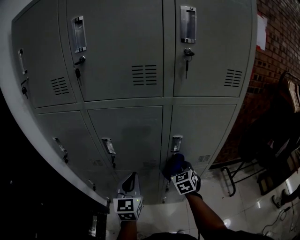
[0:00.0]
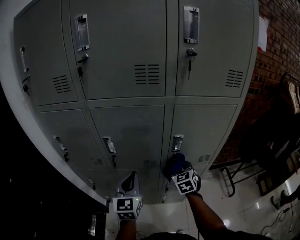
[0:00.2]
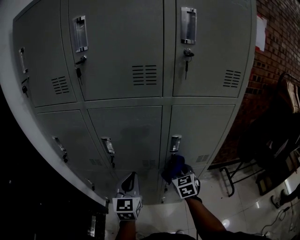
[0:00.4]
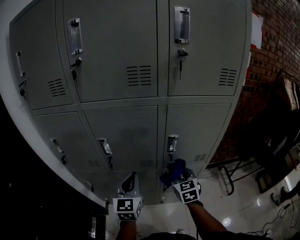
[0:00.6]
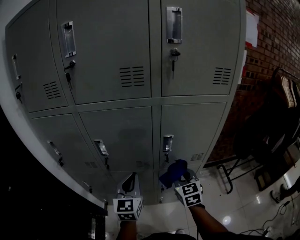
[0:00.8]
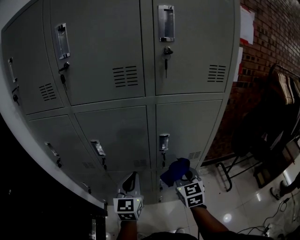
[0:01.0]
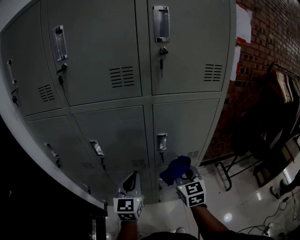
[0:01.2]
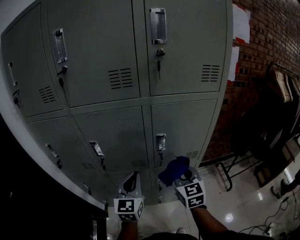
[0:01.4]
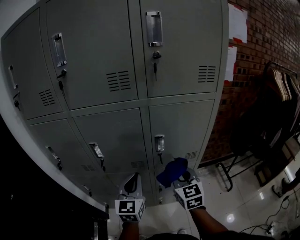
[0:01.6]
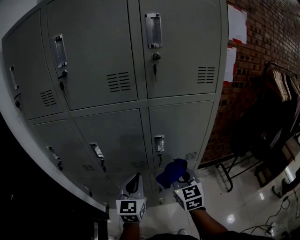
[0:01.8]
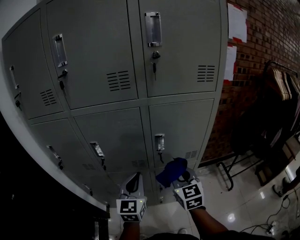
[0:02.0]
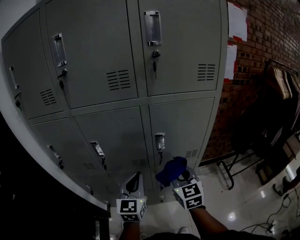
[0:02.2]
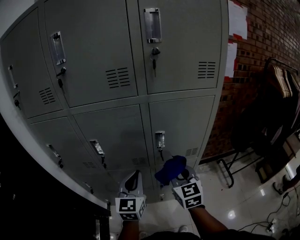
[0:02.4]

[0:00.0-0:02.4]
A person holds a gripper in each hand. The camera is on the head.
0:00.0 to 0:01.2: The left gripper shifts some 5 cm to the right. Meanwhile the right gripper moves backward and upward, approximately 10 cm.
0:01.2 to 0:02.4: There are only small adjustments of the grippers.

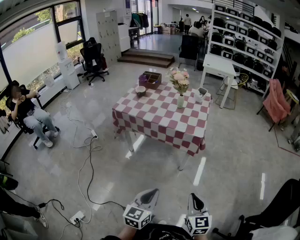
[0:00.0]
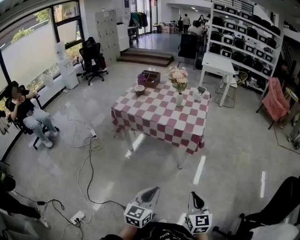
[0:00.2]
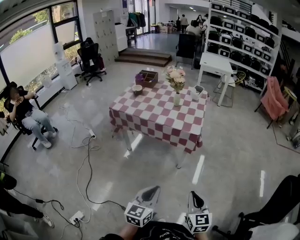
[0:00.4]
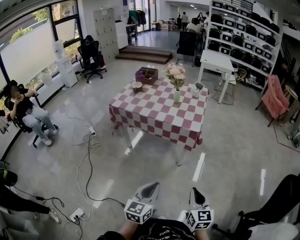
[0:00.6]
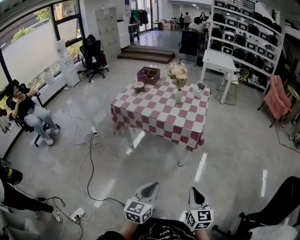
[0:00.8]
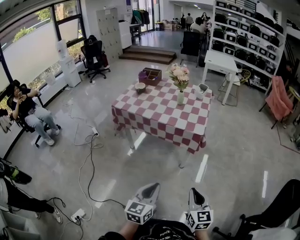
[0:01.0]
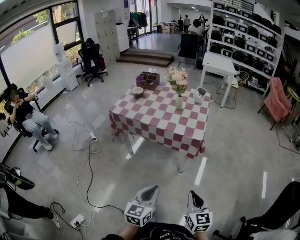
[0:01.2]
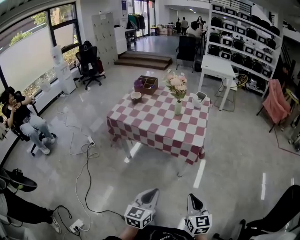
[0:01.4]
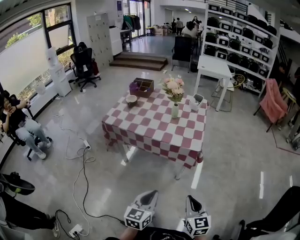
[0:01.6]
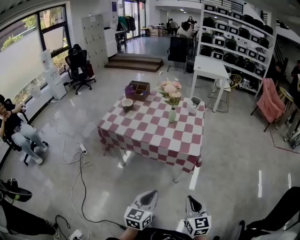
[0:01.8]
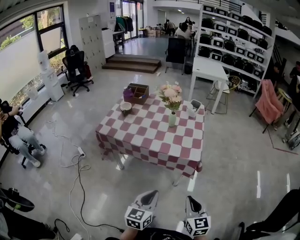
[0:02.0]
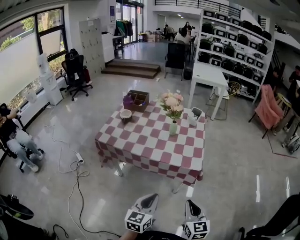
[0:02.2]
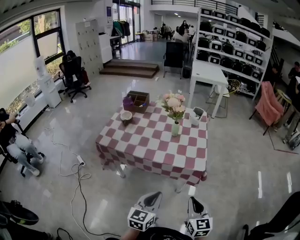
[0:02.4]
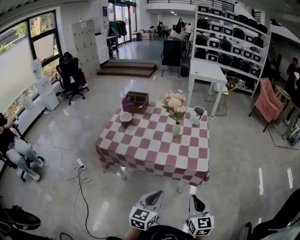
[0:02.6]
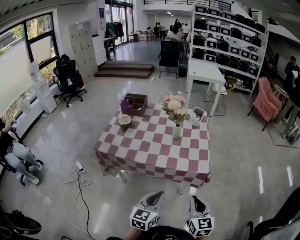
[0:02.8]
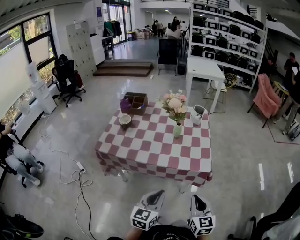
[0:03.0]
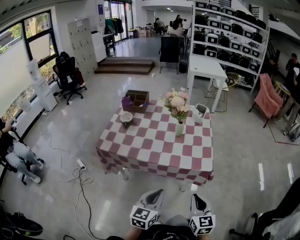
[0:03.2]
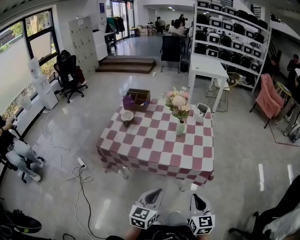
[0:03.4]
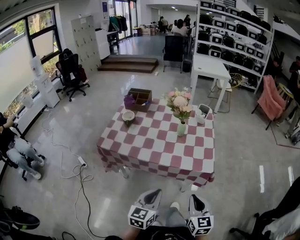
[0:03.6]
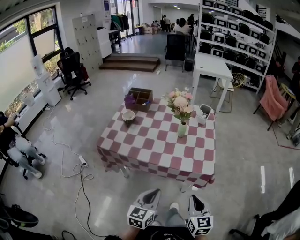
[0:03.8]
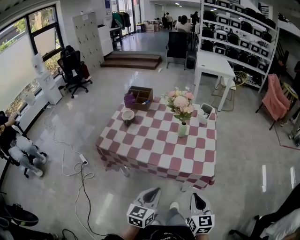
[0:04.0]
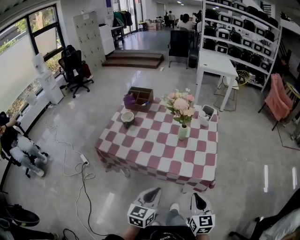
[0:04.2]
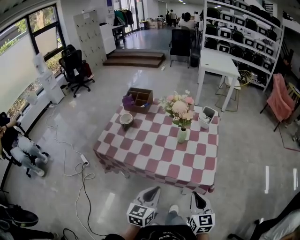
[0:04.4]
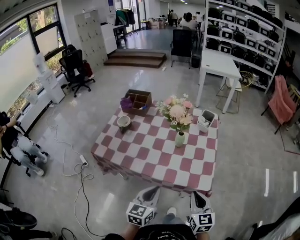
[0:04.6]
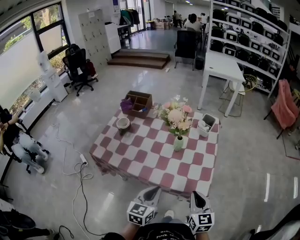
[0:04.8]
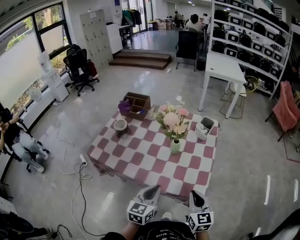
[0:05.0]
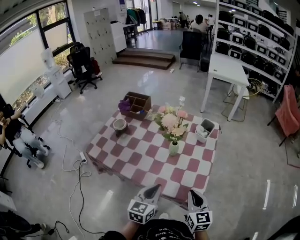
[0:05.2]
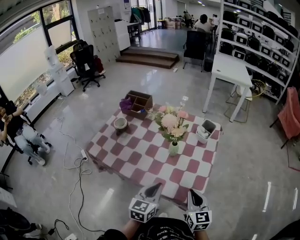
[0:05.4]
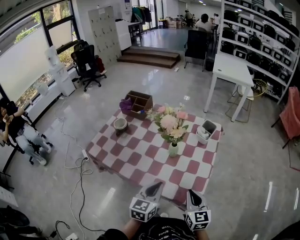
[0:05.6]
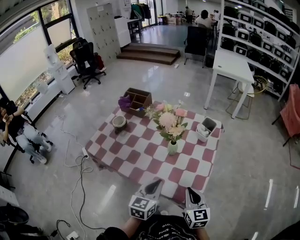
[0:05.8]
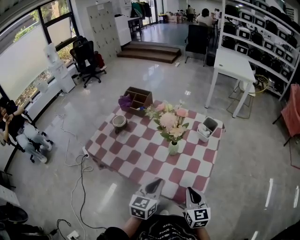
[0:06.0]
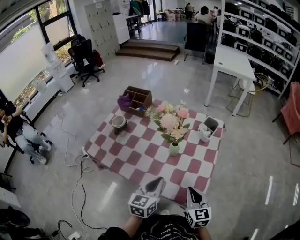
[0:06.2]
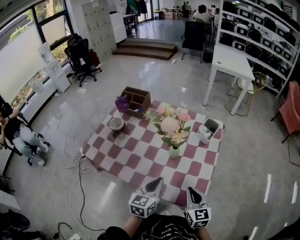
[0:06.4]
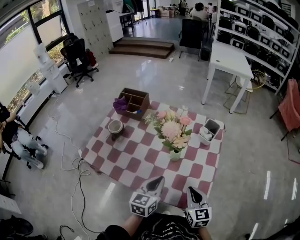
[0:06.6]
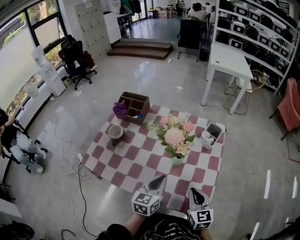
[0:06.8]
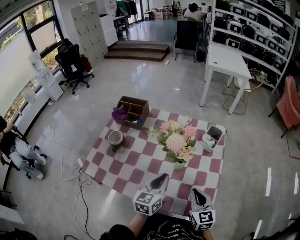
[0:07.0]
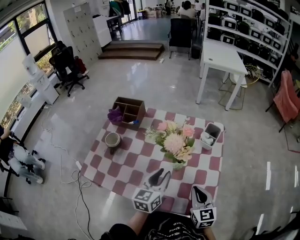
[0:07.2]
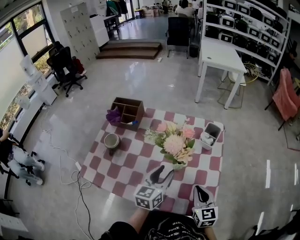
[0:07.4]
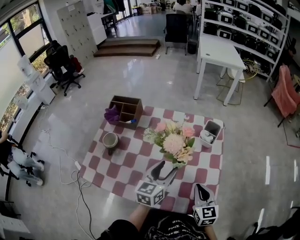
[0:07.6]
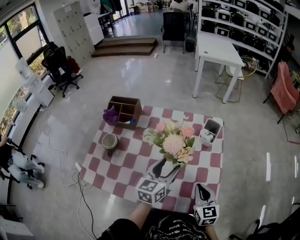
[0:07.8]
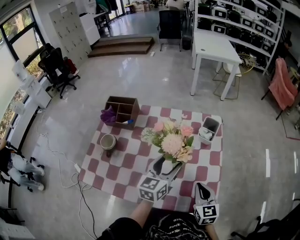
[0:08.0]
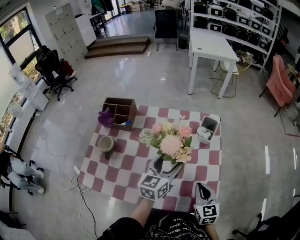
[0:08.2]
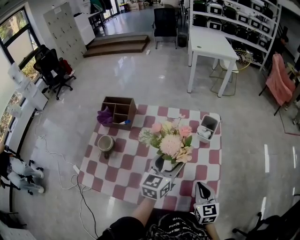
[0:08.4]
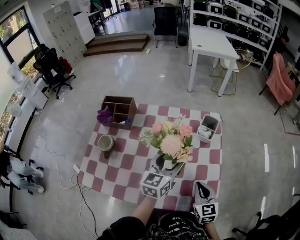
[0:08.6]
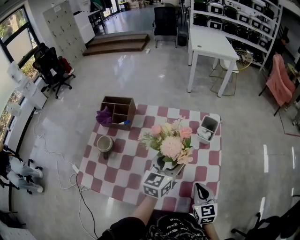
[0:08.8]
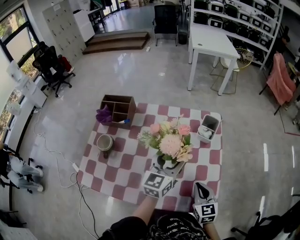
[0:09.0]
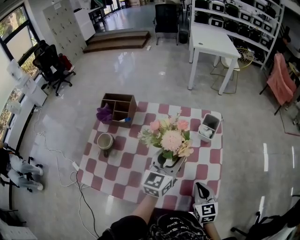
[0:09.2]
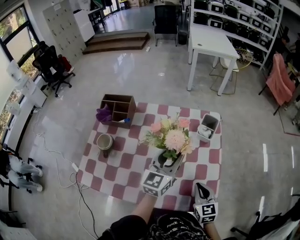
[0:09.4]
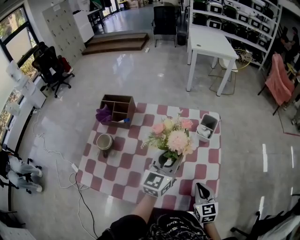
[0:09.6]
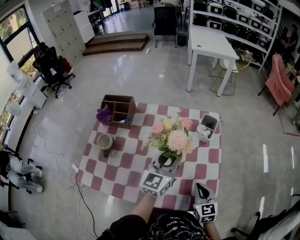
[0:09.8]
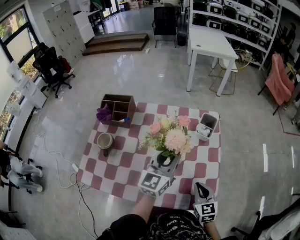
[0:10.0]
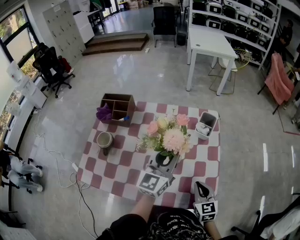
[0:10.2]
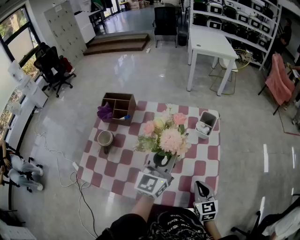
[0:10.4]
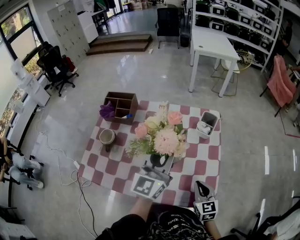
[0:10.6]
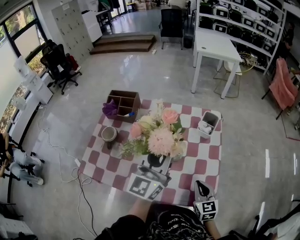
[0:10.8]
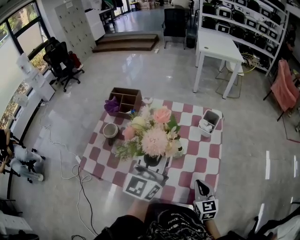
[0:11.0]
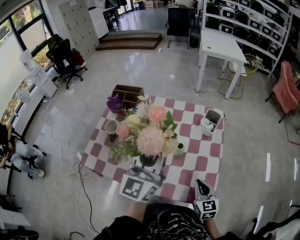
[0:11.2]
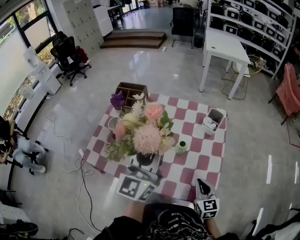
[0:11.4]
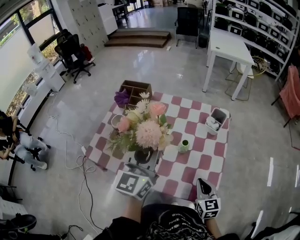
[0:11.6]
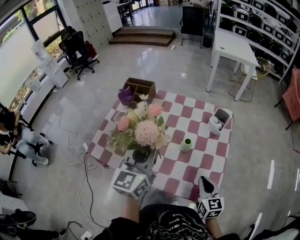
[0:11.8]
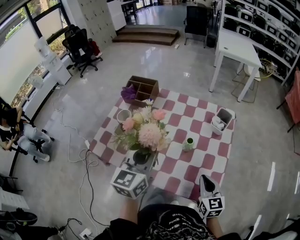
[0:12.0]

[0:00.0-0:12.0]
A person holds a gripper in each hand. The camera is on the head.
0:00.0 to 0:01.6: The grippers both shift forward by roughly 10 cm.
0:01.6 to 0:03.0: The two grippers go some 20 cm forward and to the left.
0:03.0 to 0:04.4: The two grippers go roughly 10 cm forward.
0:04.4 to 0:06.0: The left gripper travels forward and to the right by roughly 15 cm; the right gripper shifts roughly 15 cm forward.
0:06.0 to 0:07.6: The right gripper travels forward by roughly 10 cm; the left gripper travels forward by some 15 cm, and opens up.
0:07.6 to 0:09.0: The left gripper moves forward, approximately 5 cm.
0:09.0 to 0:10.4: The left gripper goes some 5 cm upward, and closes its fingers.
0:10.4 to 0:12.0: The left gripper moves to the left and backward, some 15 cm, and rotates roughly 20 degrees.

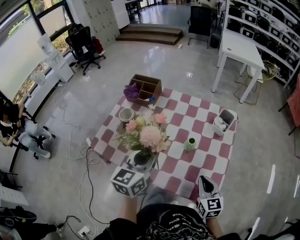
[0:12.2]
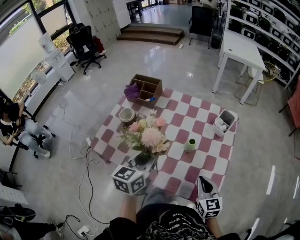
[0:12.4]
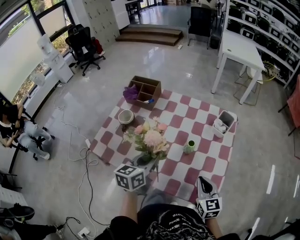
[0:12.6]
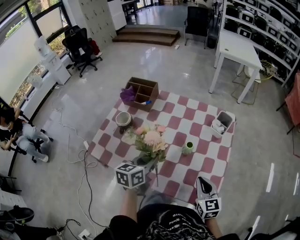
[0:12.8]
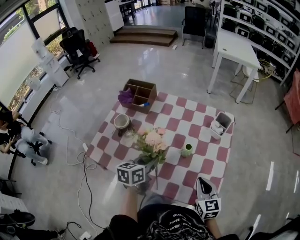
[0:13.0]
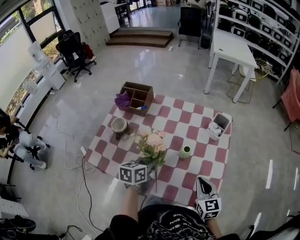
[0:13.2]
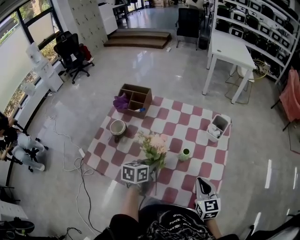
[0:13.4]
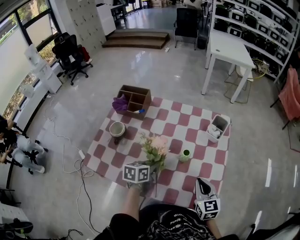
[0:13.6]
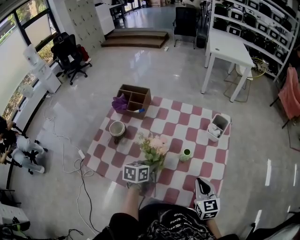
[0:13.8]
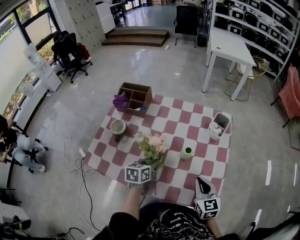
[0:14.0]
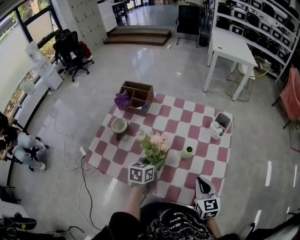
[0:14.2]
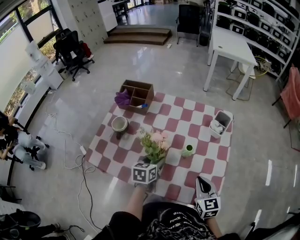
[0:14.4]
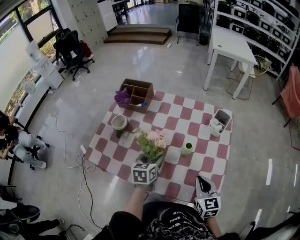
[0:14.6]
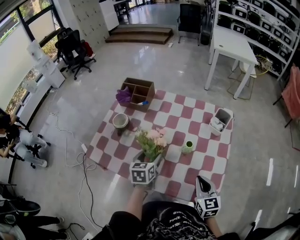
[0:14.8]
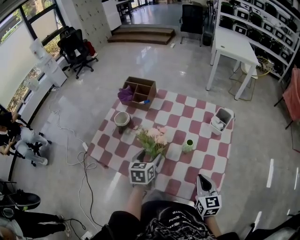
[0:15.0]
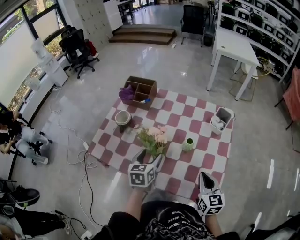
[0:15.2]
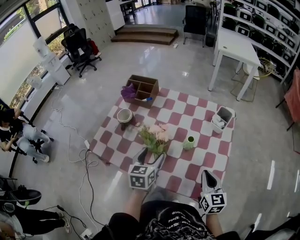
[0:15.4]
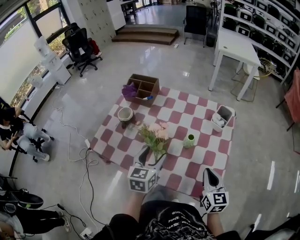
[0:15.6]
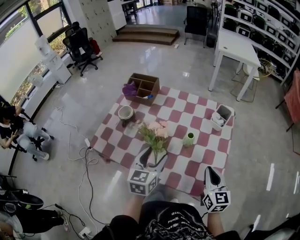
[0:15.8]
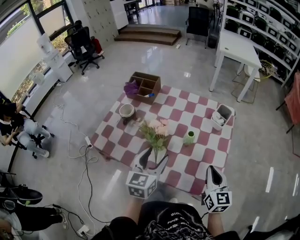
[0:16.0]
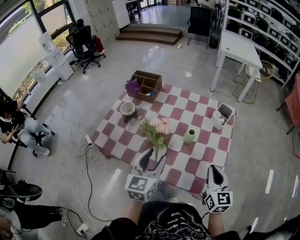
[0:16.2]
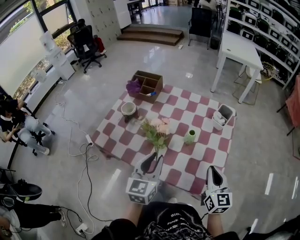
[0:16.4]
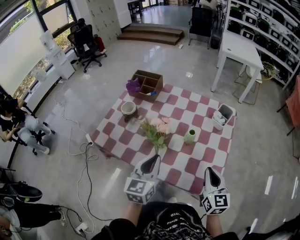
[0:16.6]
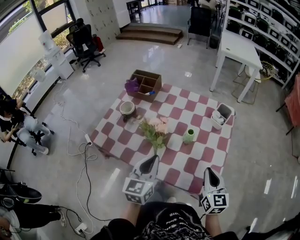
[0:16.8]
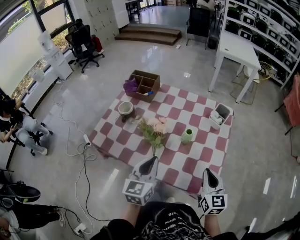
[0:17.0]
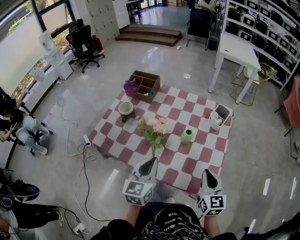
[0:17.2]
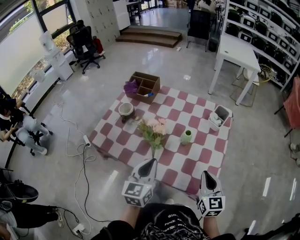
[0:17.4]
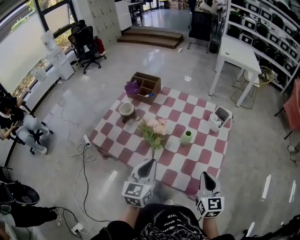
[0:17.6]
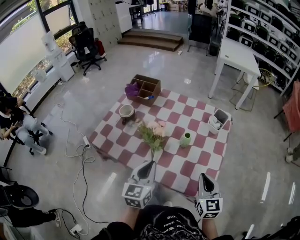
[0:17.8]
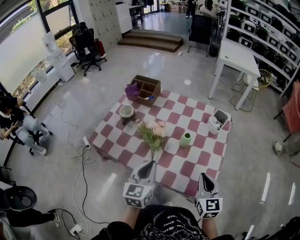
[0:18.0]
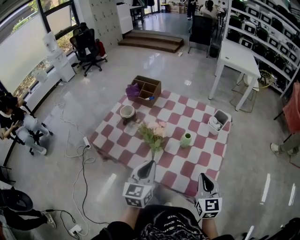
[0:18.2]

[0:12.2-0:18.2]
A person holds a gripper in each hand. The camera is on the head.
0:12.2 to 0:13.8: The left gripper heads downward, covering approximately 20 cm, and rotates approximately 40 degrees.
0:13.8 to 0:15.2: The left gripper moves roughly 5 cm, changes its angle by roughly 20 degrees, and opens up.
0:15.2 to 0:16.6: The right gripper shifts roughly 5 cm upward; the left gripper heads backward and upward, covering about 15 cm, and closes its fingers.
0:16.6 to 0:18.2: The grippers make only small movements.

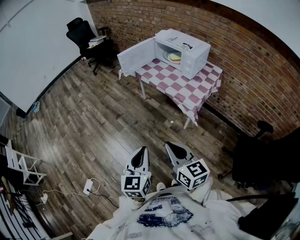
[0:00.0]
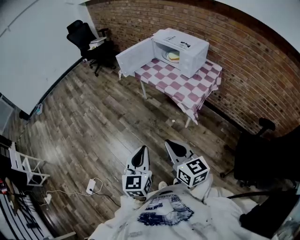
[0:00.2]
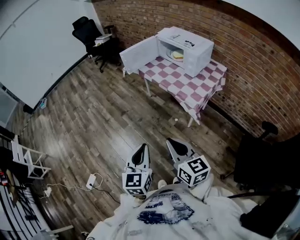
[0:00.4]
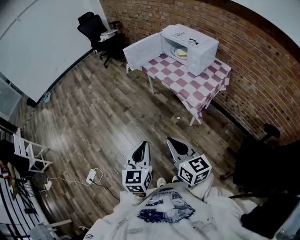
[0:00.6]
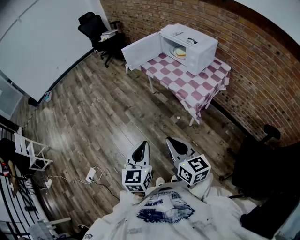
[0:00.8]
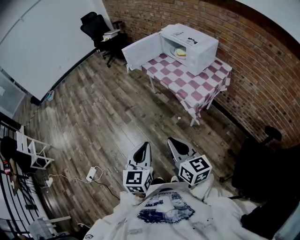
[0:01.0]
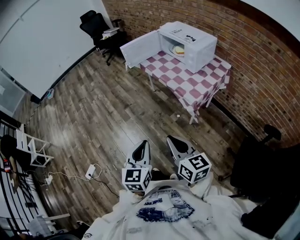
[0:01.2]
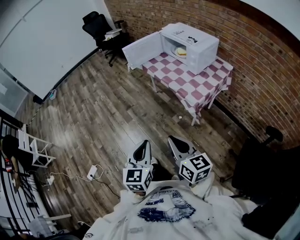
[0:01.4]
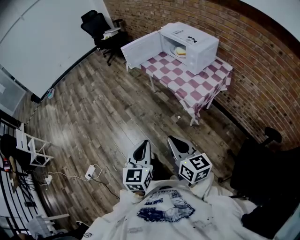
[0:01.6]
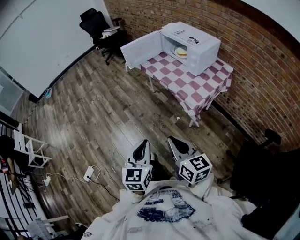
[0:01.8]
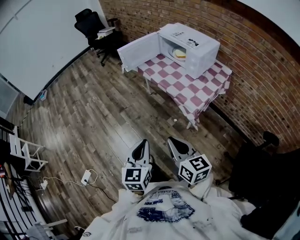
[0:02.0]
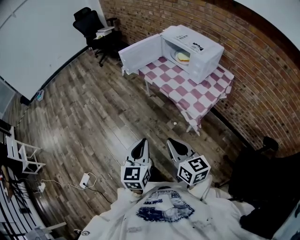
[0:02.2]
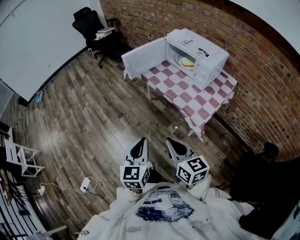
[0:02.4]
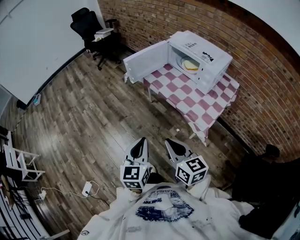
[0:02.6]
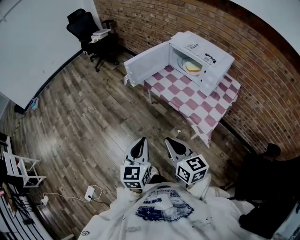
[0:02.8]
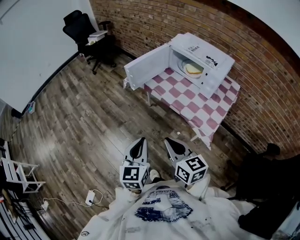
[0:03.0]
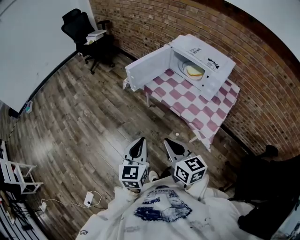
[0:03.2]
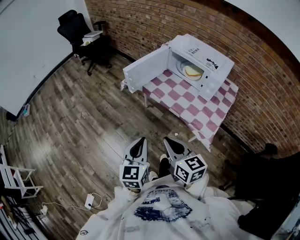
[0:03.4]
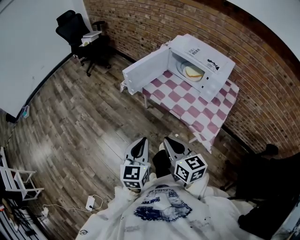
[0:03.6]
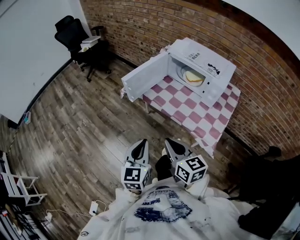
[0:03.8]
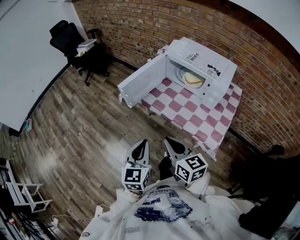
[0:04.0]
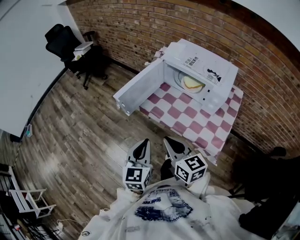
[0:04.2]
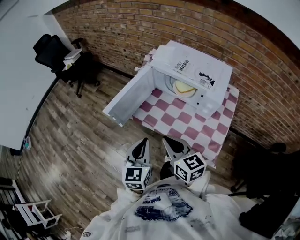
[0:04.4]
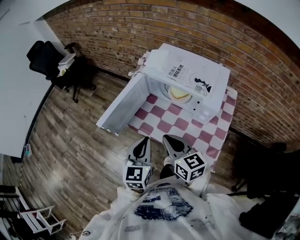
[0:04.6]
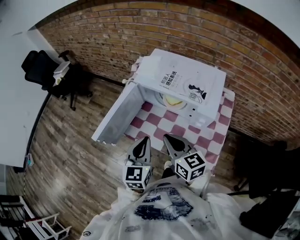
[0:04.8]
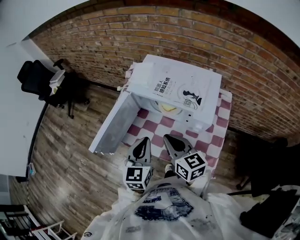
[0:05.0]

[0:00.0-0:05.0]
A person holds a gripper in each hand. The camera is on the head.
0:00.0 to 0:01.6: Both grippers travel together to the right, approximately 10 cm.
0:01.6 to 0:03.4: The right gripper moves forward and to the left, roughly 35 cm, while the left gripper travels forward by some 35 cm.
0:03.4 to 0:05.0: Both grippers travel together forward and to the right, approximately 40 cm.
